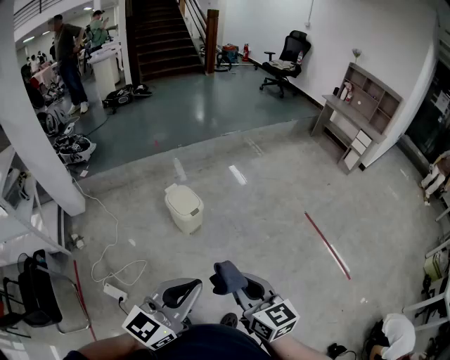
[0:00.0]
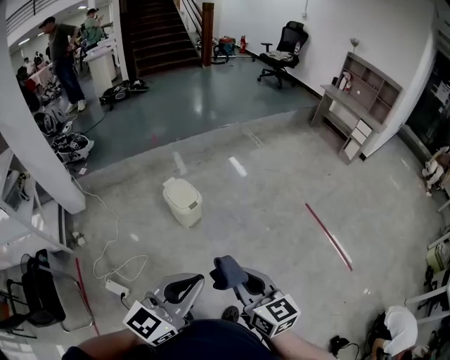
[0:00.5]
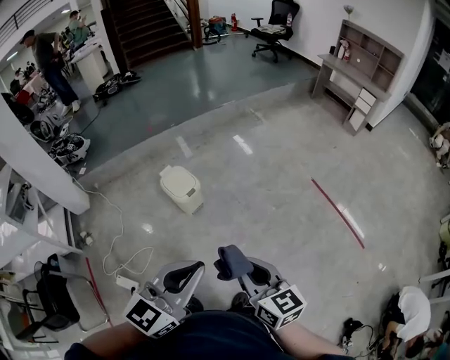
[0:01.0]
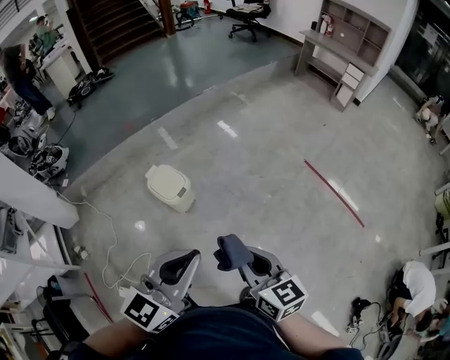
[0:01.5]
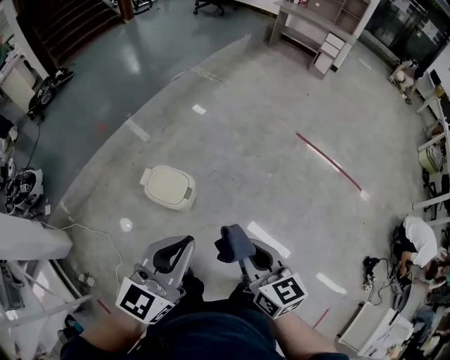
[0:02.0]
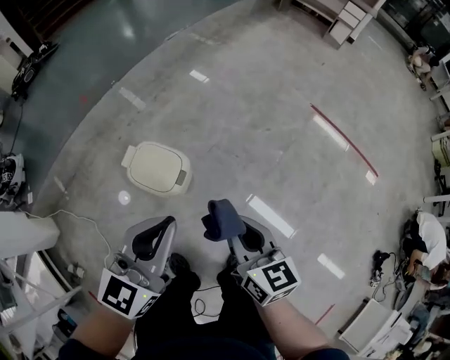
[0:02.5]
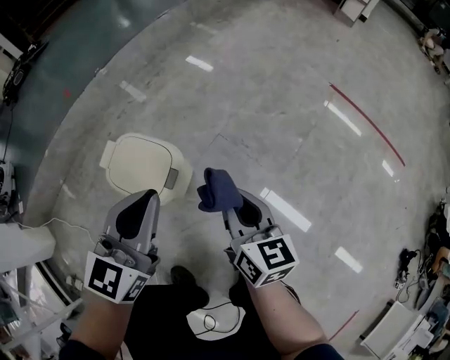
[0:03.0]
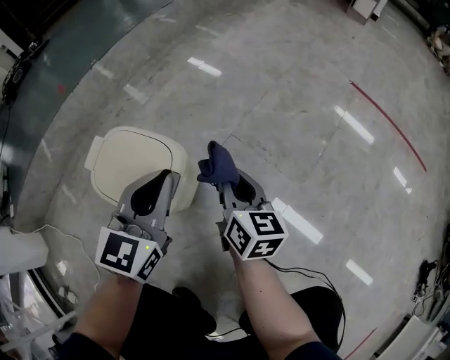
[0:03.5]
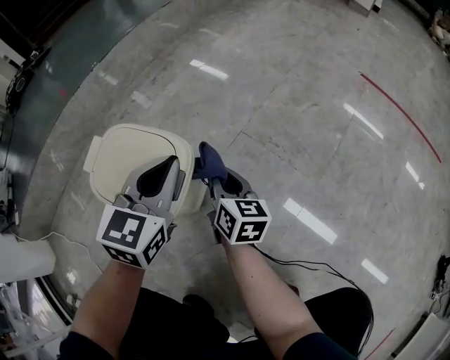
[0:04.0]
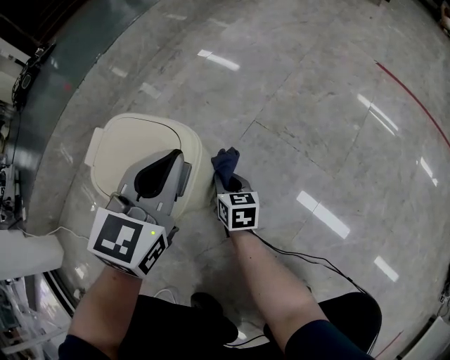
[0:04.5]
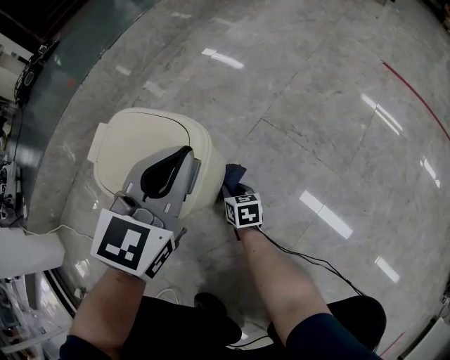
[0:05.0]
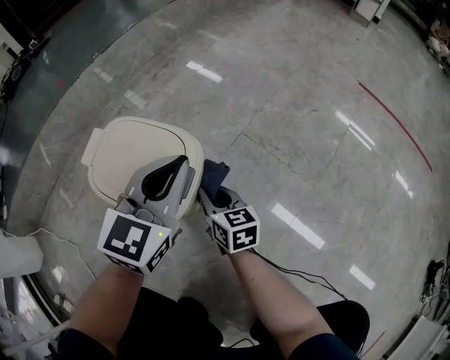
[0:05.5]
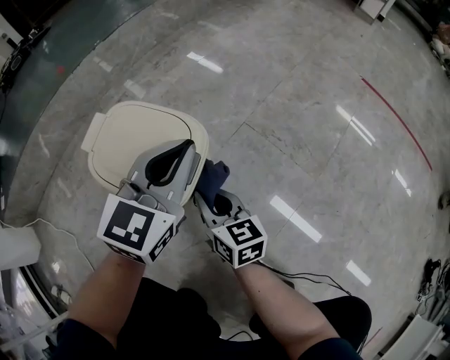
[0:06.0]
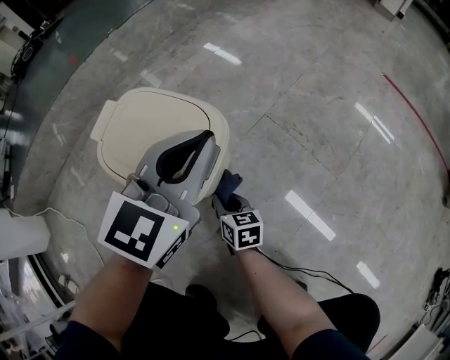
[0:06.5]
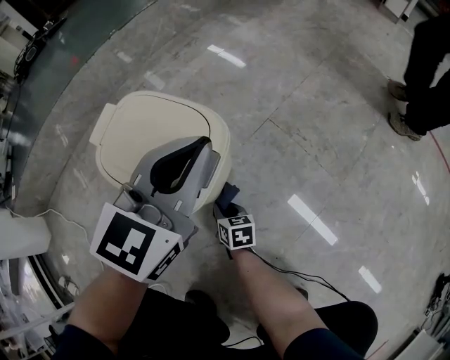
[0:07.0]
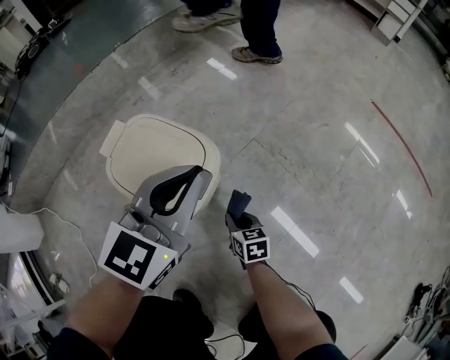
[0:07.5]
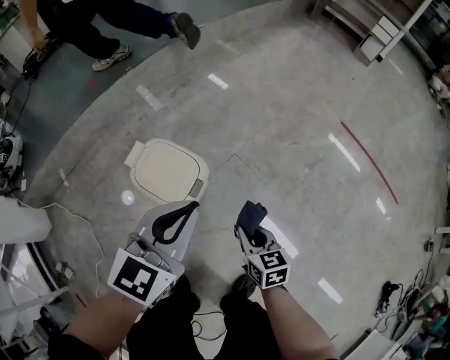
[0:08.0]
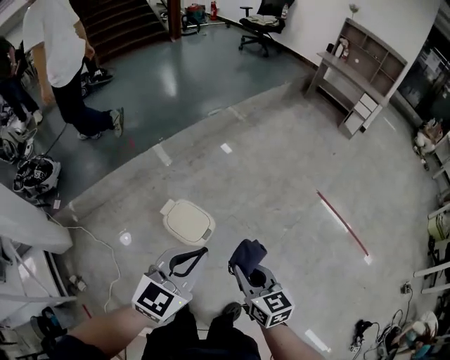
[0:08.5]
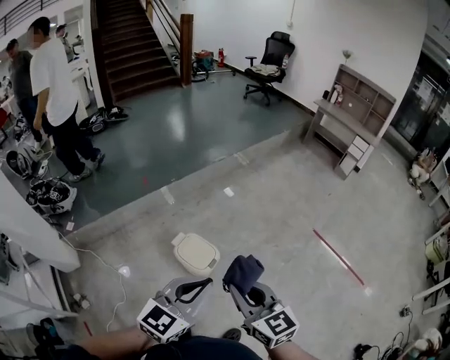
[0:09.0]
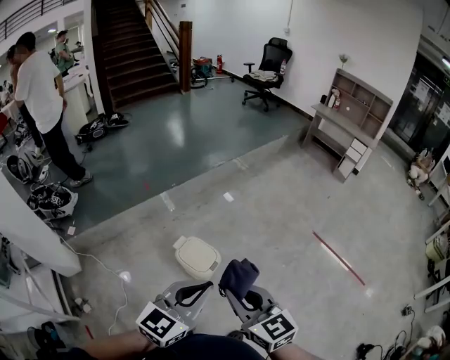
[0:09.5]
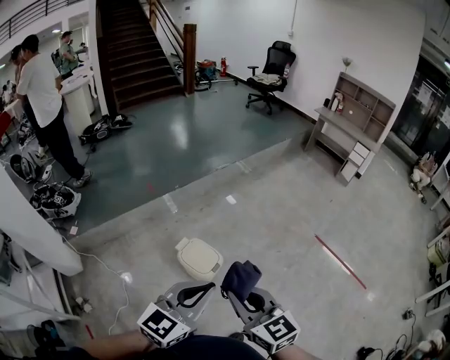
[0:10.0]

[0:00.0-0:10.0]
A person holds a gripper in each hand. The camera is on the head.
0:00.0 to 0:02.0: The right gripper moves forward, to the left and downward, roughly 30 cm, and turns by approximately 30 degrees. Meanwhile the left gripper travels forward and to the left by about 35 cm.
0:02.0 to 0:04.0: Both grippers move downward and forward, approximately 70 cm. The left gripper changes its angle by approximately 30 degrees.
0:04.0 to 0:06.0: The right gripper moves backward and to the left, approximately 10 cm, moves roughly 20 cm downward and comes back, and rotates roughly 20 degrees.
0:06.0 to 0:08.0: The left gripper goes roughly 25 cm upward, while the right gripper moves upward and to the right, about 25 cm.
0:08.0 to 0:10.0: The left gripper goes approximately 50 cm upward and backward; the right gripper travels upward by some 60 cm, and rotates about 30 degrees.

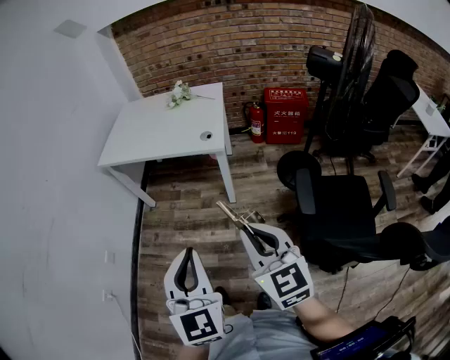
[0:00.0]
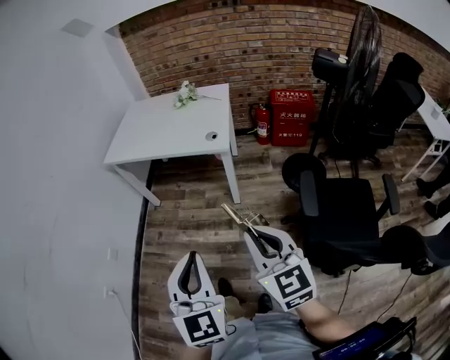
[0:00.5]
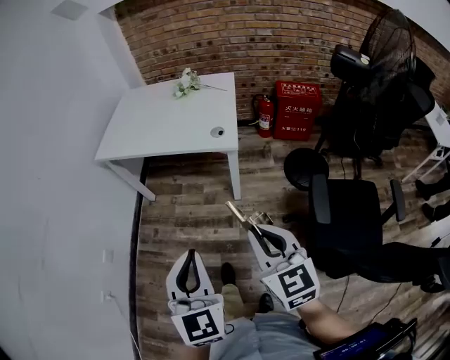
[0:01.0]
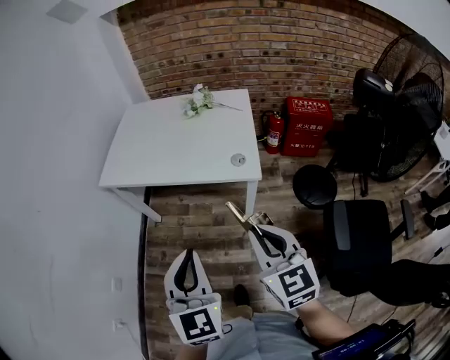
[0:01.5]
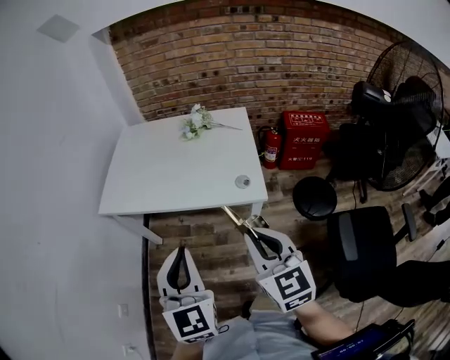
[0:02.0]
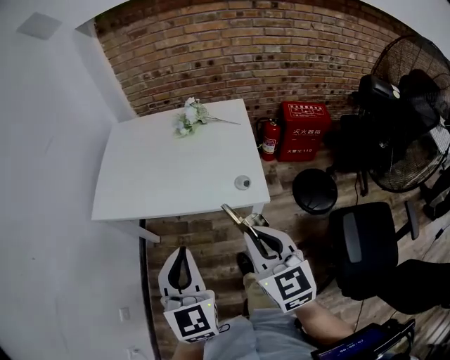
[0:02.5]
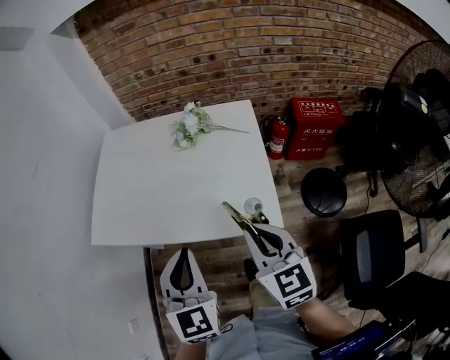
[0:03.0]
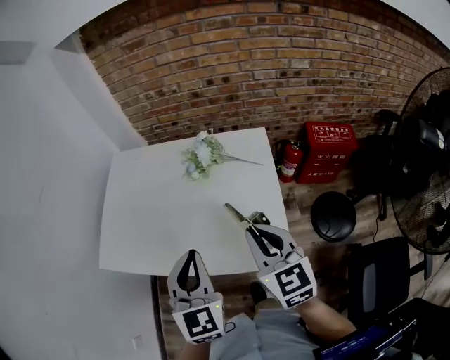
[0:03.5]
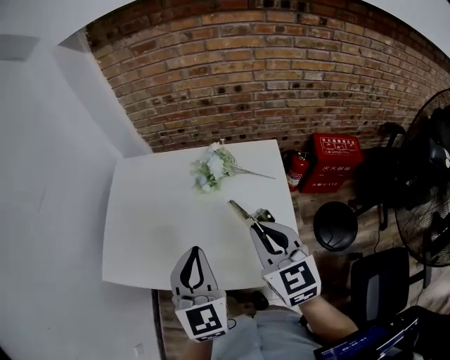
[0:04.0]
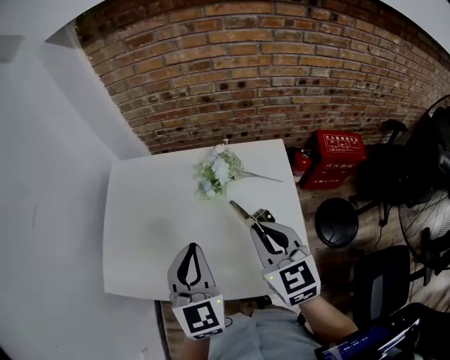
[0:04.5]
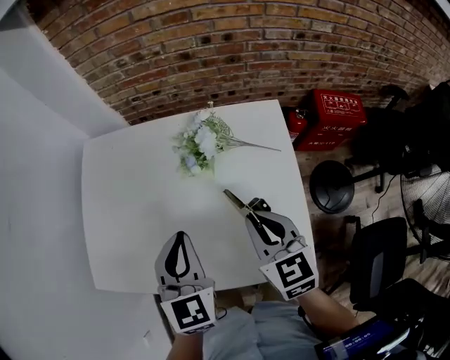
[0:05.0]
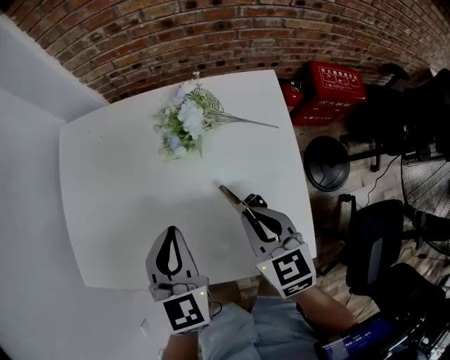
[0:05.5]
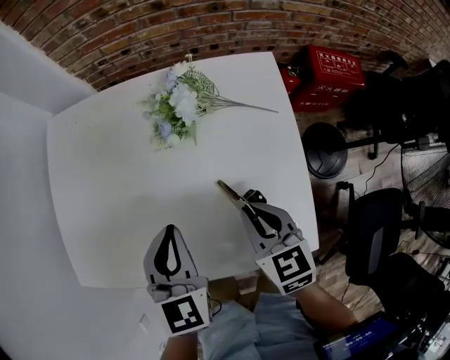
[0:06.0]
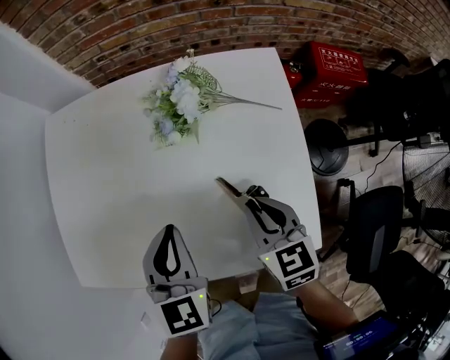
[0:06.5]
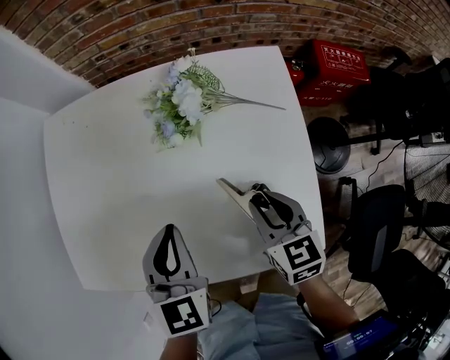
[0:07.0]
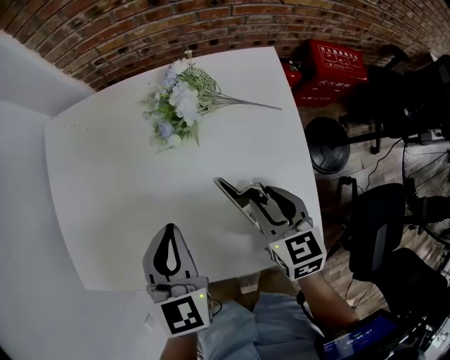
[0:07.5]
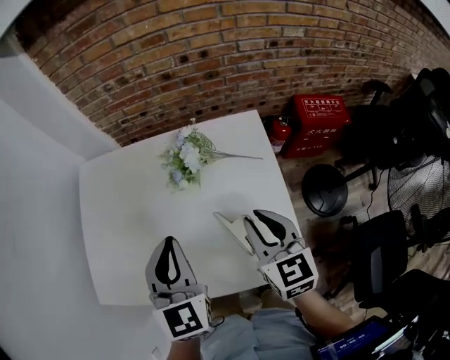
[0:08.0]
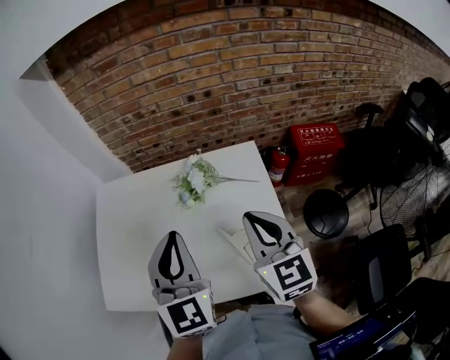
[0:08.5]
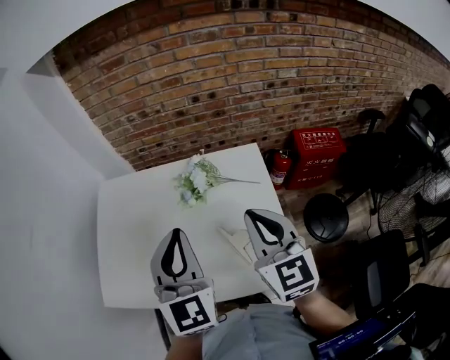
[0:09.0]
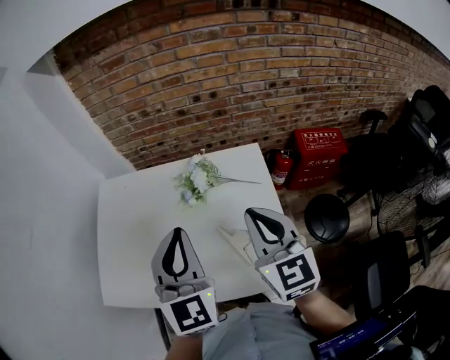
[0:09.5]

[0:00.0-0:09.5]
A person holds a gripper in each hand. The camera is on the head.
0:00.0 to 0:02.0: The two grippers go some 30 cm forward.
0:02.0 to 0:04.0: The two grippers go roughly 35 cm forward.
0:04.0 to 0:05.5: The left gripper heads downward and forward, covering roughly 15 cm. Meanwhile the right gripper is displaced downward by roughly 15 cm, and swivels approximately 20 degrees.
0:05.5 to 0:07.5: The right gripper goes about 5 cm downward, and opens its fingers.
0:07.5 to 0:09.5: The grippers both shift upward by approximately 25 cm. The left gripper changes its angle by about 30 degrees, while the right gripper turns by roughly 30 degrees, and closes.

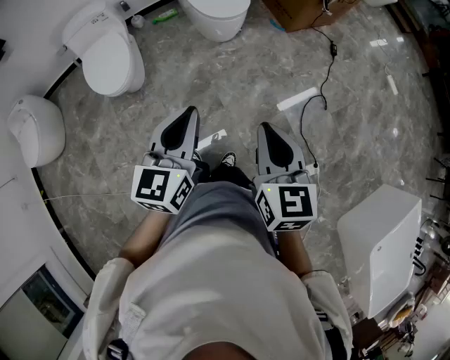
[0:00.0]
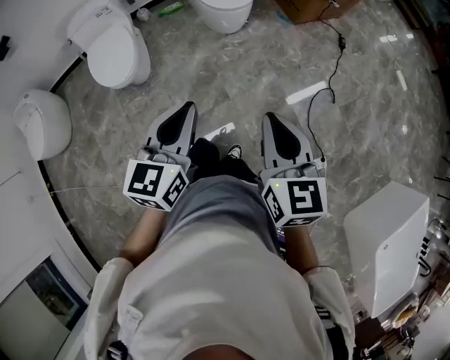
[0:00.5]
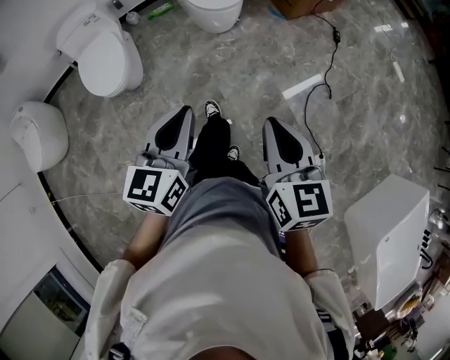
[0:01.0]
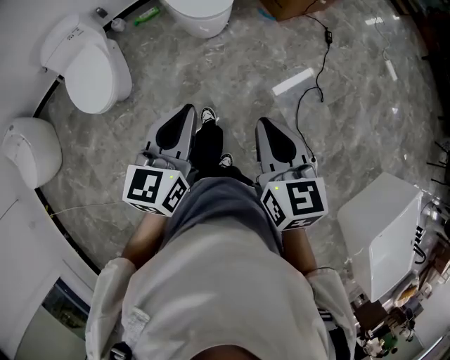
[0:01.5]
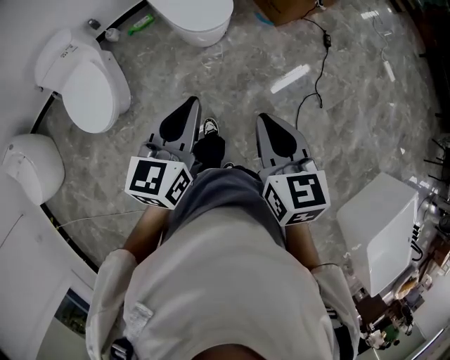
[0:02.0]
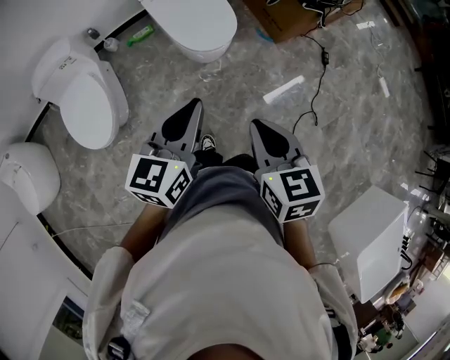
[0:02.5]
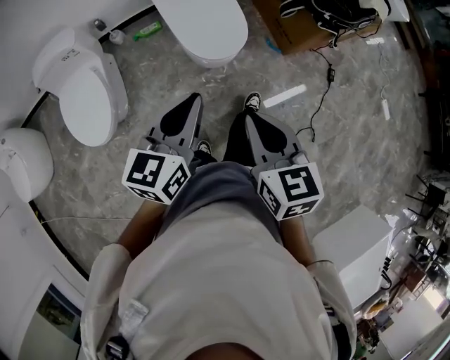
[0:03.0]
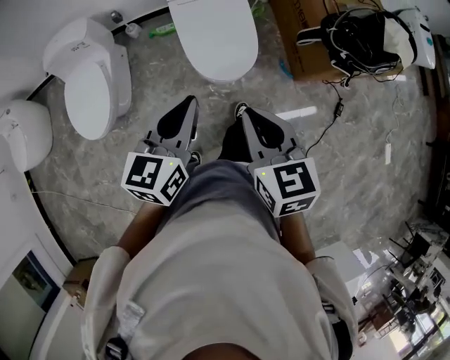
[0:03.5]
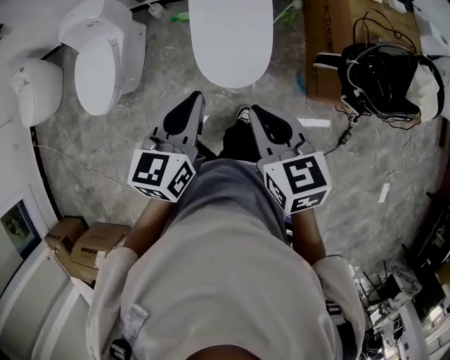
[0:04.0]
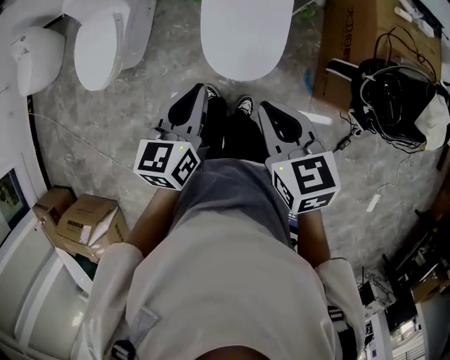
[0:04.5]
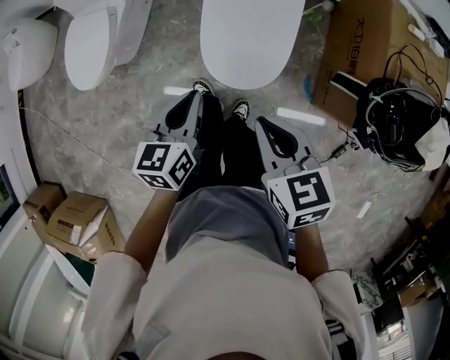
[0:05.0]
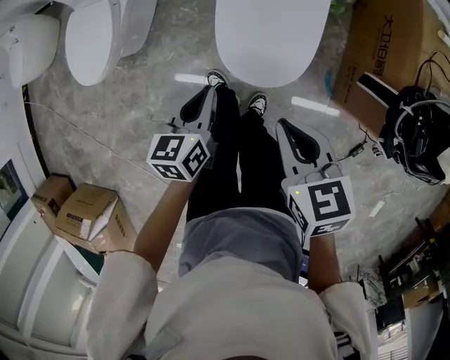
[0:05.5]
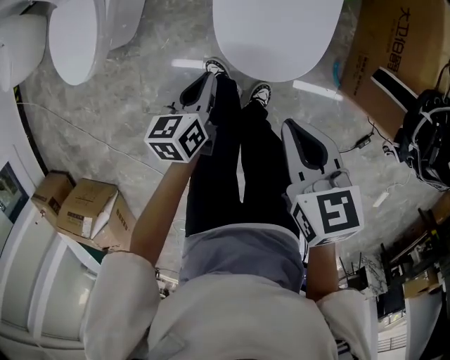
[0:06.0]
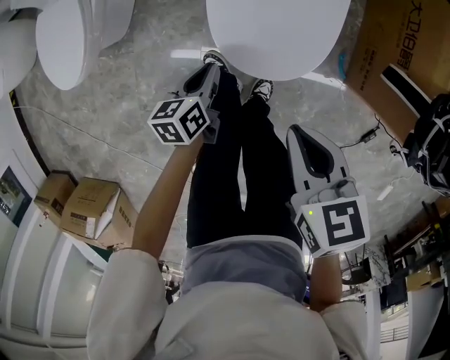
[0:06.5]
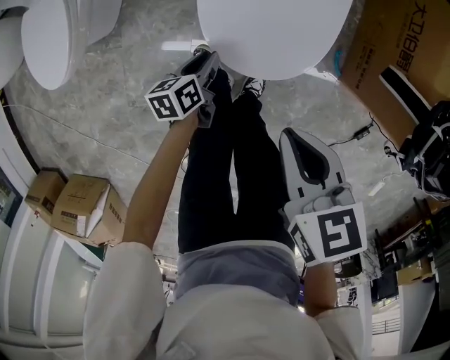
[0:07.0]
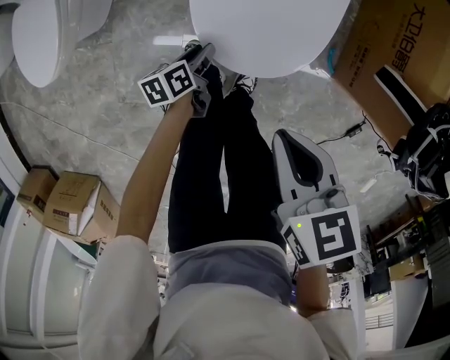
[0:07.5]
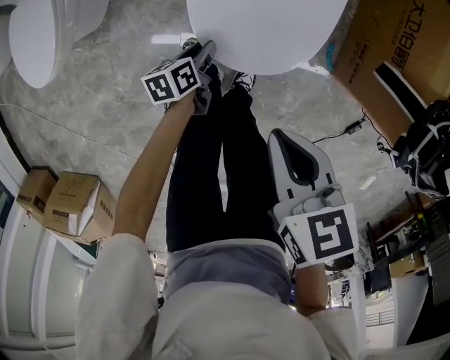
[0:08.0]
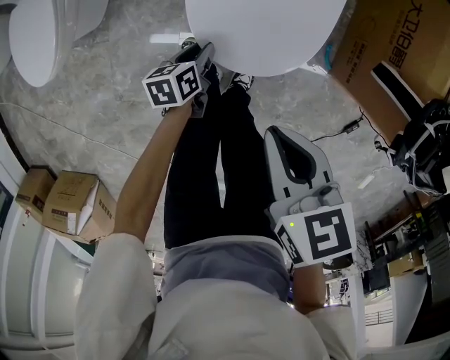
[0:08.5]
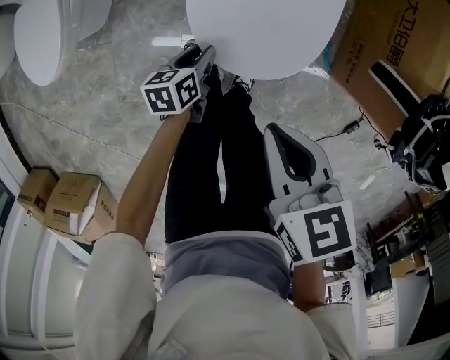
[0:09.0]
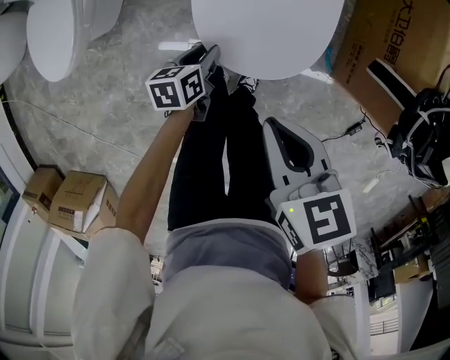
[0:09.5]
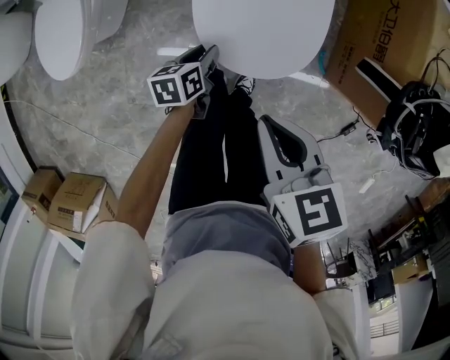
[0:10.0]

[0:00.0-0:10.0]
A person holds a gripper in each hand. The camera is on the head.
0:00.0 to 0:02.0: Both grippers move forward, some 25 cm.
0:02.0 to 0:04.0: The pair of grippers is taken some 40 cm. The left gripper swivels some 30 degrees; the right gripper swivels about 40 degrees.
0:04.0 to 0:06.0: The right gripper heads downward, covering roughly 20 cm, while the left gripper travels downward by roughly 35 cm, and rotates approximately 30 degrees.
0:06.0 to 0:08.0: The left gripper heads downward, covering approximately 20 cm, swivels some 20 degrees, and opens its fingers, while the right gripper travels downward by roughly 5 cm.
0:08.0 to 0:10.0: Both grippers travel together upward, about 10 cm.
